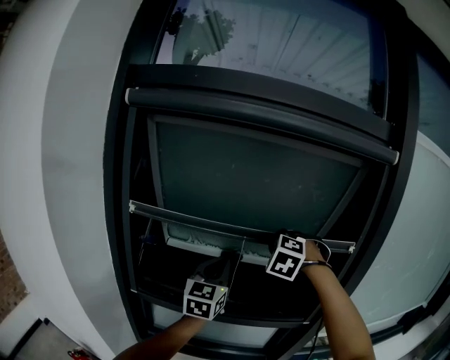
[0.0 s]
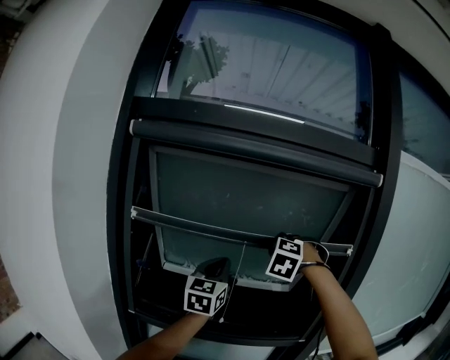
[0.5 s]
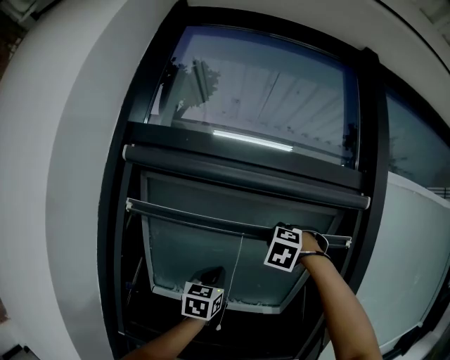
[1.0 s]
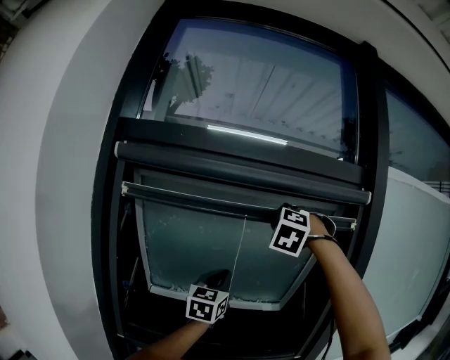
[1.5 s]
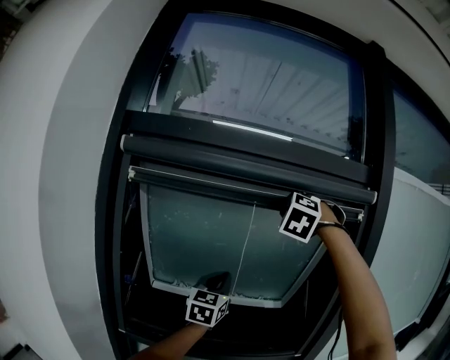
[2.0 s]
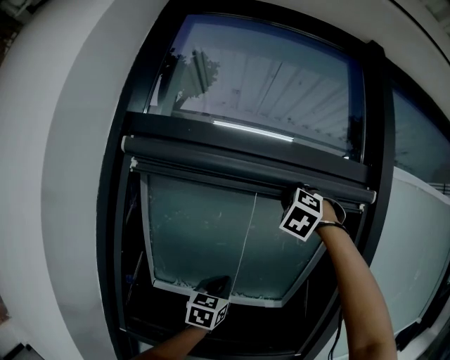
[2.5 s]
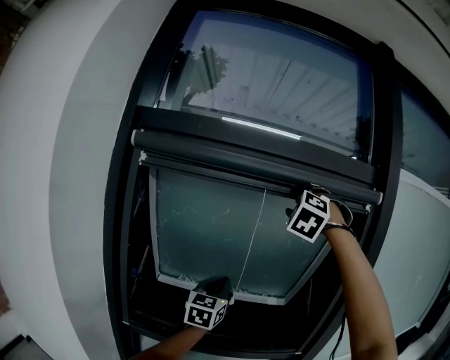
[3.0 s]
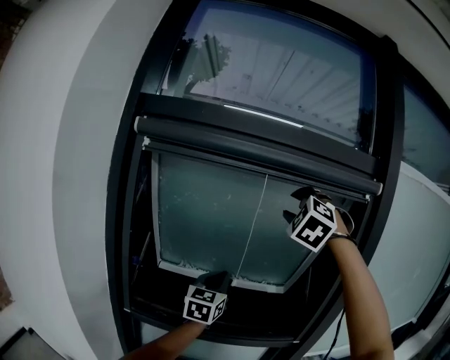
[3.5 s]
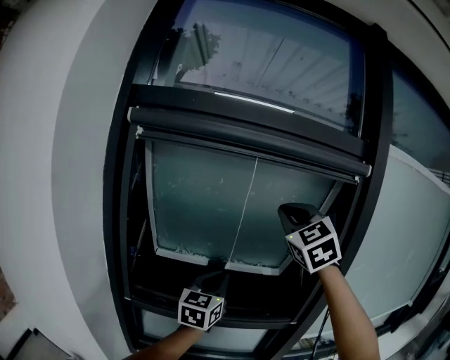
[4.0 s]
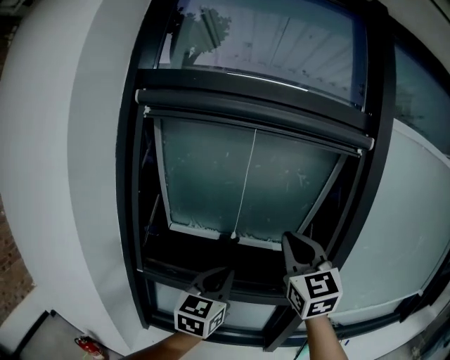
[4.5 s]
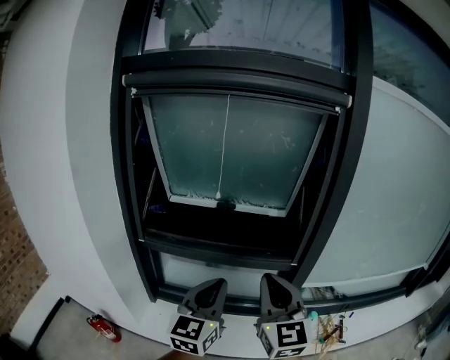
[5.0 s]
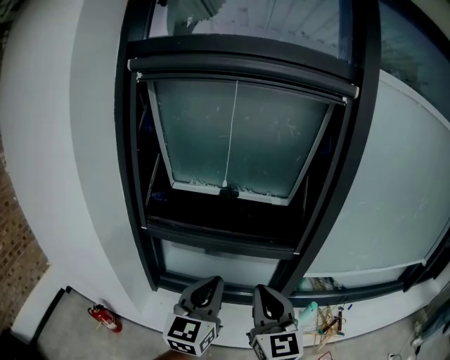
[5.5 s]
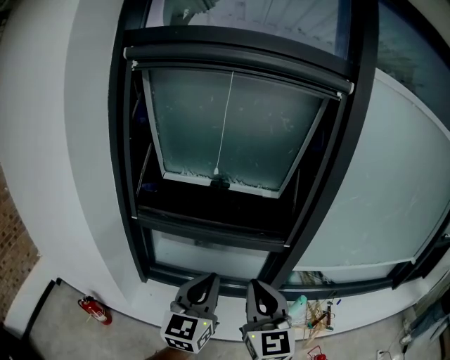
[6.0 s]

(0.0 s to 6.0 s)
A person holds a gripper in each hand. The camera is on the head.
0.0 s - 2.0 s: The right gripper heads upward, covering about 25 cm, and rotates roughly 20 degrees. The left gripper is displaced upward by about 10 cm.
2.0 s - 4.0 s: Both grippers travel together backward and downward, roughly 15 cm. The right gripper changes its angle by roughly 50 degrees, and opens, then closes once more.
4.0 s - 6.0 s: The right gripper is displaced downward and backward by about 40 cm, and changes its angle by some 30 degrees. The left gripper heads backward, covering roughly 30 cm.

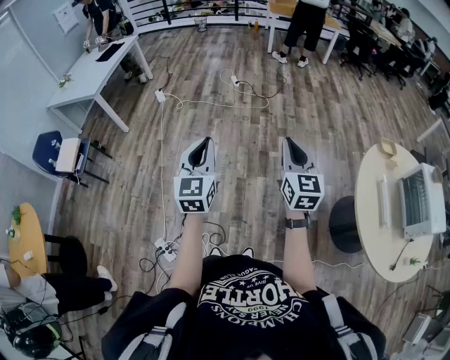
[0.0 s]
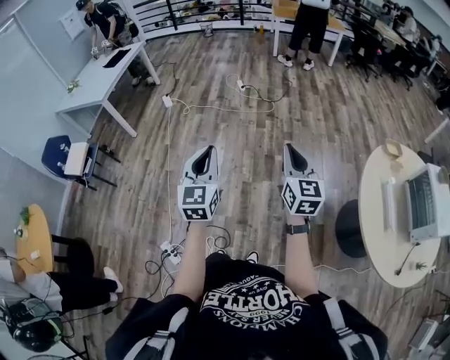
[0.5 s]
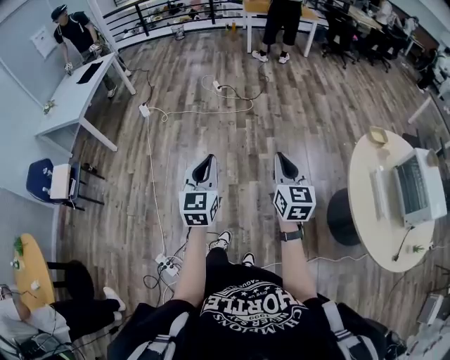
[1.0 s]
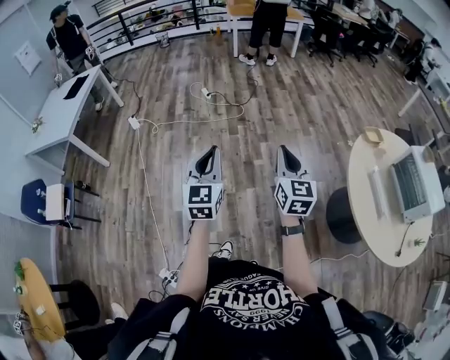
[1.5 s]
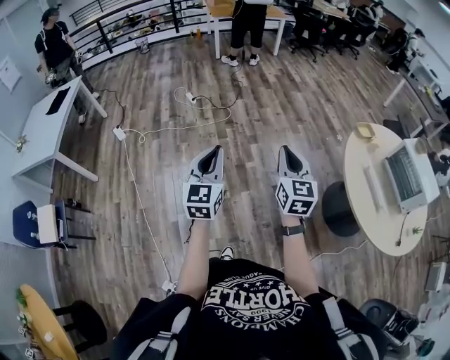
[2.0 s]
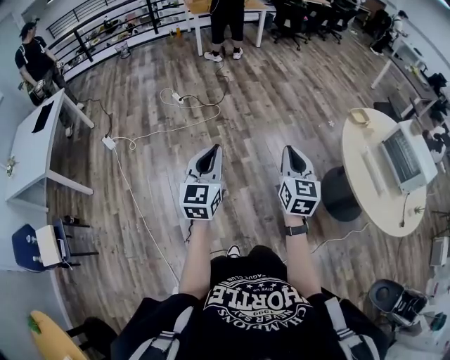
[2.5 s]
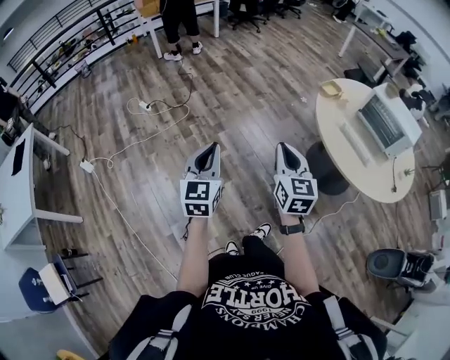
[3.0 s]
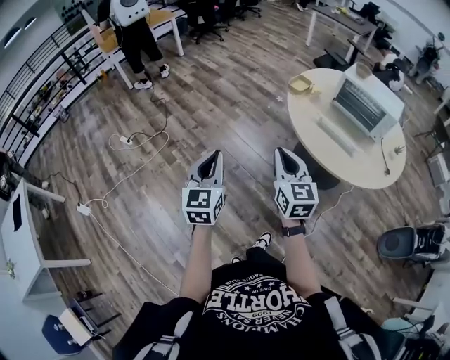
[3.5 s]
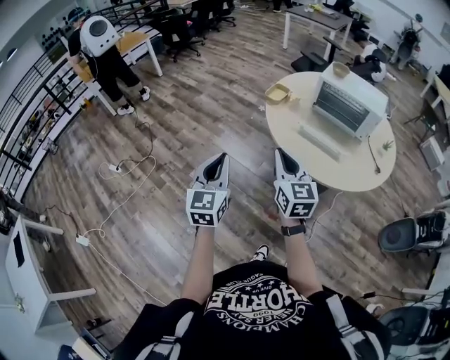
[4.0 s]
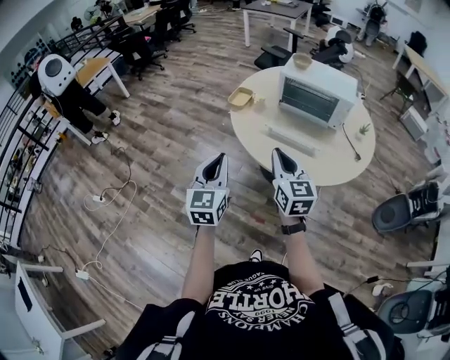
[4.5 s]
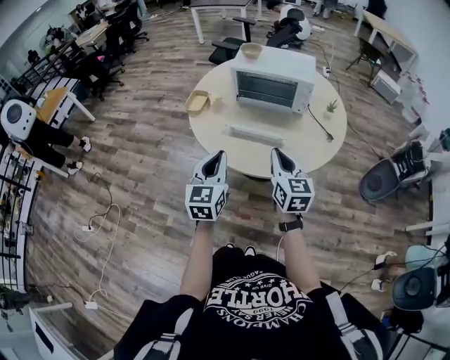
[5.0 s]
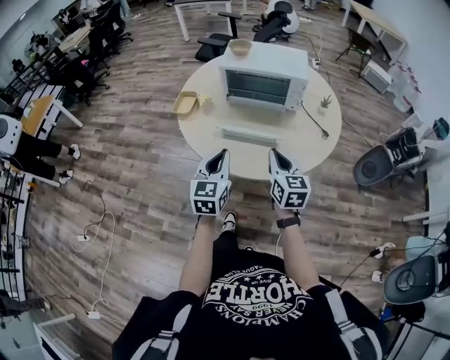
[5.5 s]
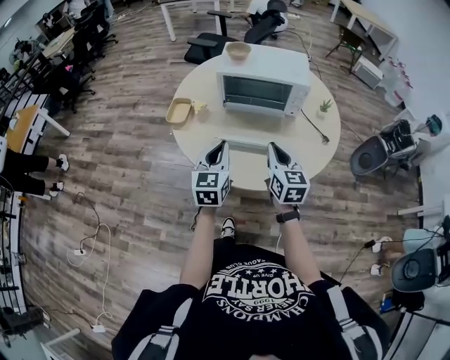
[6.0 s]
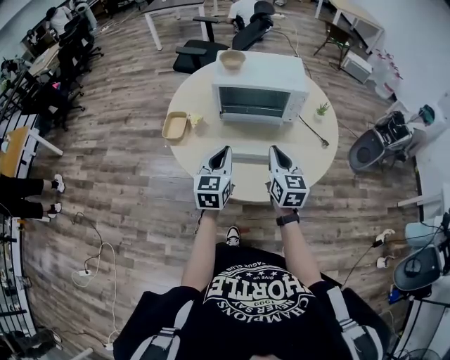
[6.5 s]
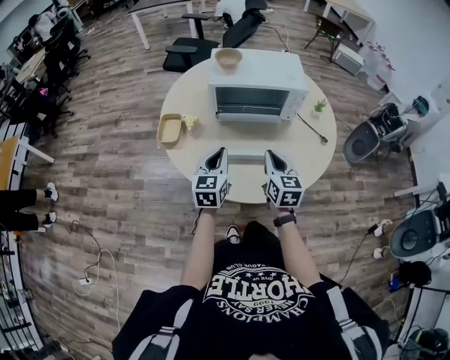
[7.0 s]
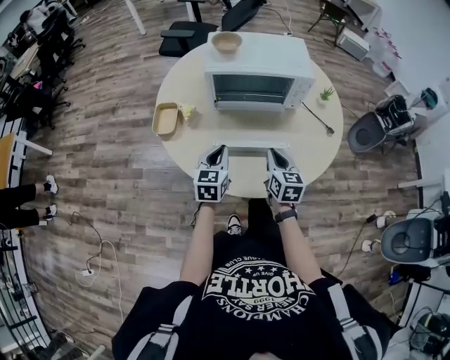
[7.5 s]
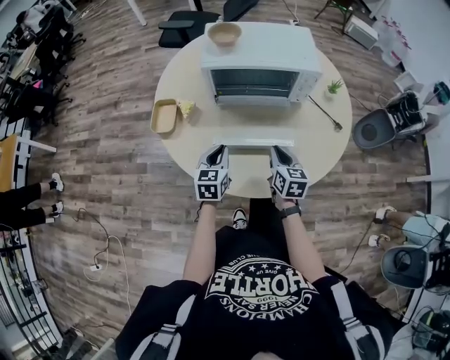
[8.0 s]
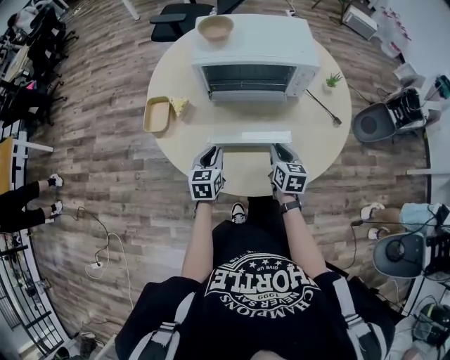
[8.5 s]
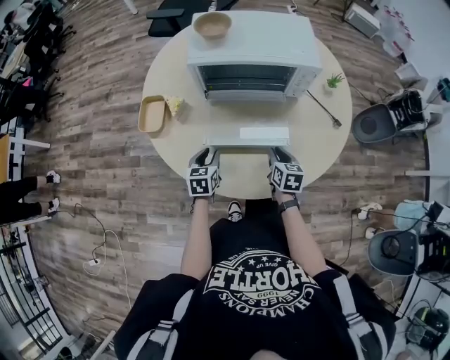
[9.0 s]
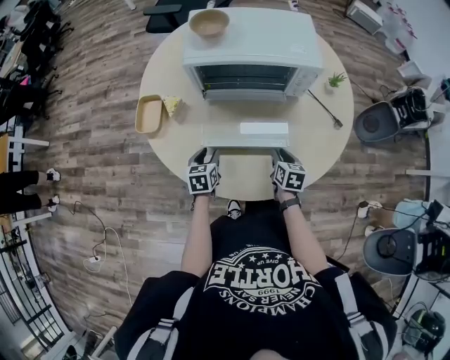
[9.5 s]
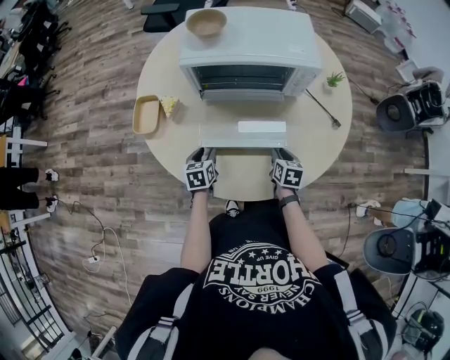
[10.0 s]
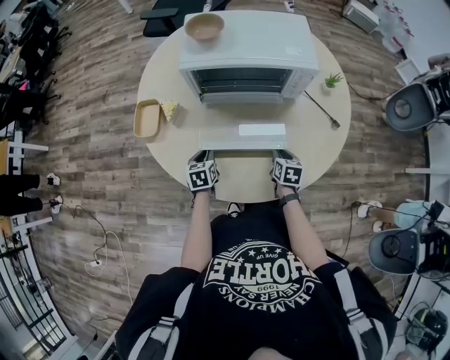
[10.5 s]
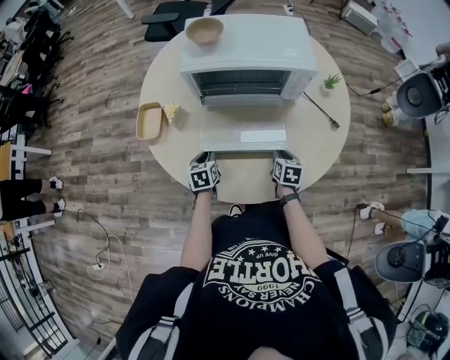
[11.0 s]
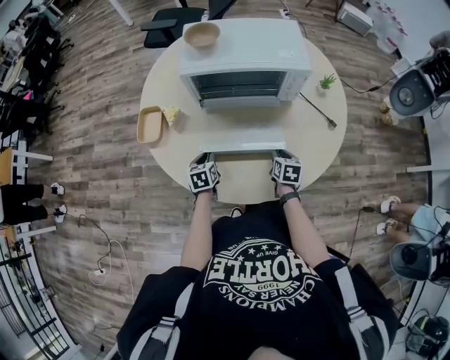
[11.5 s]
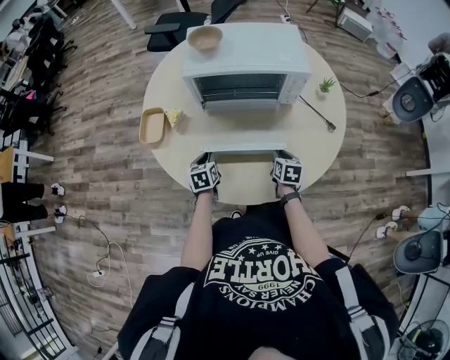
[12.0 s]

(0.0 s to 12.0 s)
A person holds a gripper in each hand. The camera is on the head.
0.0 s - 2.0 s: The left gripper goes about 15 cm forward, and changes its angle by about 20 degrees, while the right gripper heads forward, covering some 10 cm, and changes its angle by about 20 degrees.
2.0 s - 4.0 s: The left gripper changes place by about 40 cm, and swivels roughly 40 degrees, while the right gripper ends up roughly 30 cm from where it was, and changes its angle by some 30 degrees.
4.0 s - 6.0 s: The right gripper shifts by roughly 35 cm, and changes its angle by roughly 30 degrees. Meanwhile the left gripper ends up some 40 cm from where it was, and turns by roughly 30 degrees.
6.0 s - 8.0 s: The two grippers go approximately 20 cm downward and forward. The right gripper rotates some 20 degrees.
8.0 s - 10.0 s: The right gripper moves downward and to the right, about 15 cm; the left gripper goes about 15 cm downward, swivels roughly 20 degrees, and opens its fingers.
10.0 s - 12.0 s: The left gripper closes its fingers.

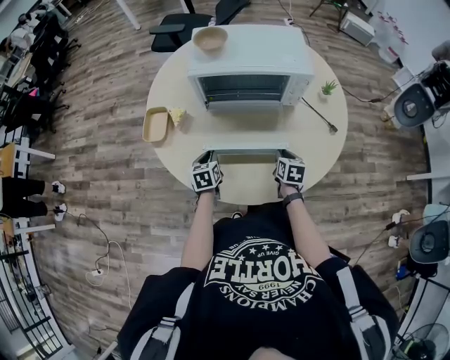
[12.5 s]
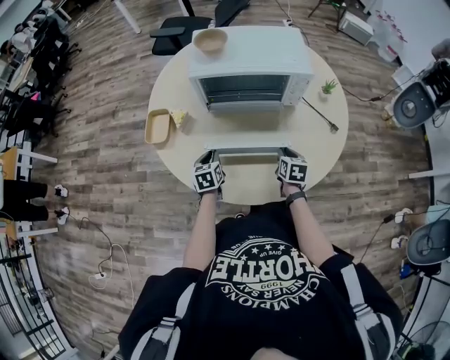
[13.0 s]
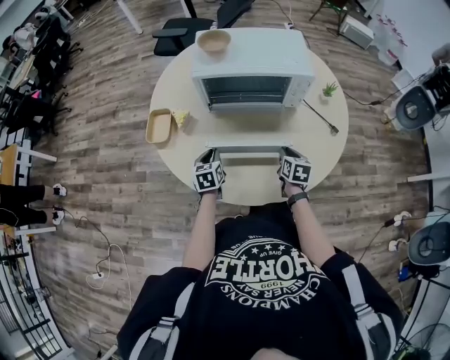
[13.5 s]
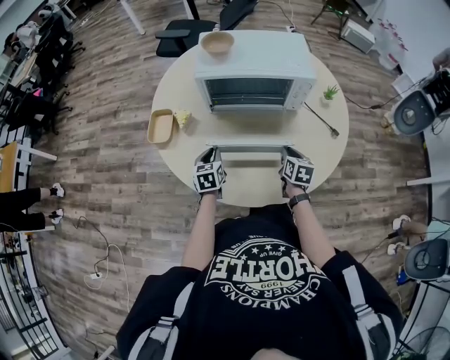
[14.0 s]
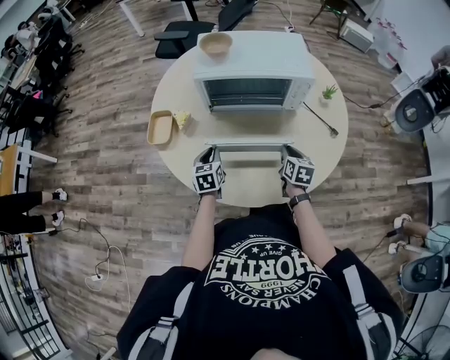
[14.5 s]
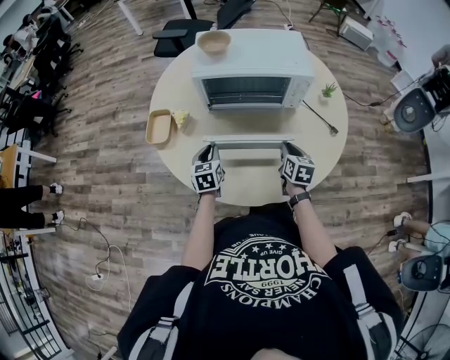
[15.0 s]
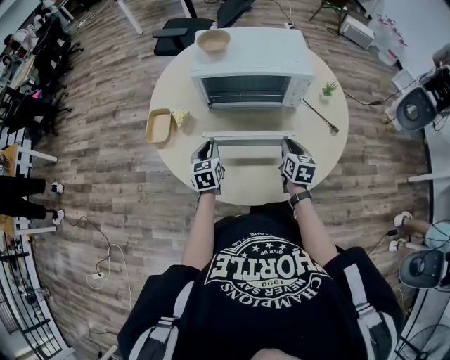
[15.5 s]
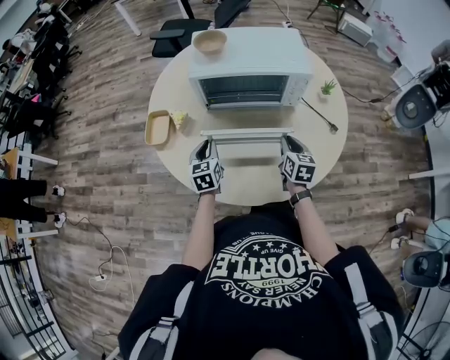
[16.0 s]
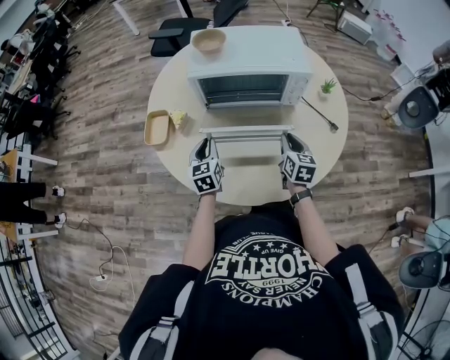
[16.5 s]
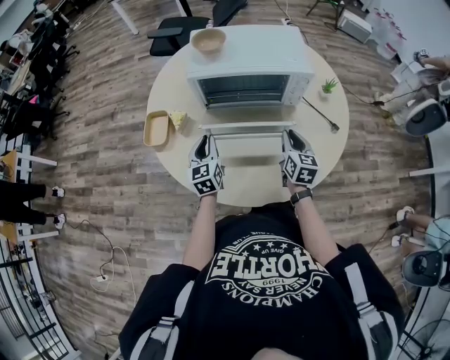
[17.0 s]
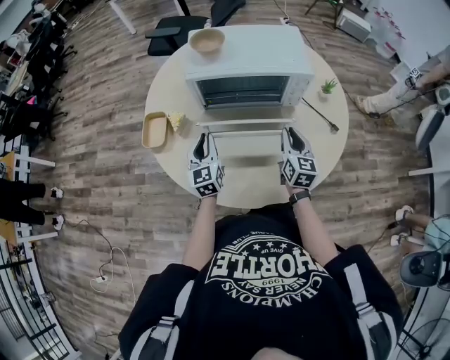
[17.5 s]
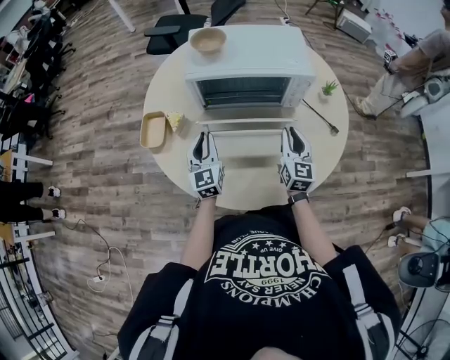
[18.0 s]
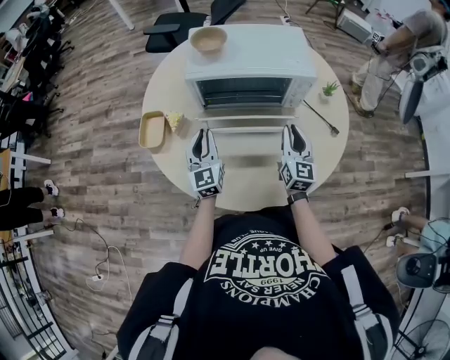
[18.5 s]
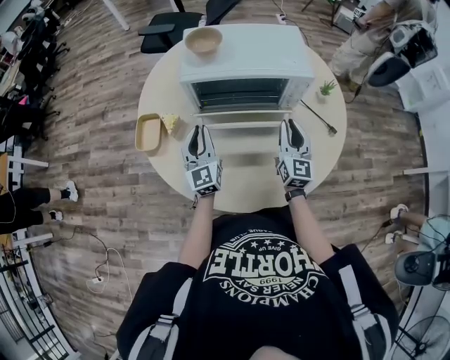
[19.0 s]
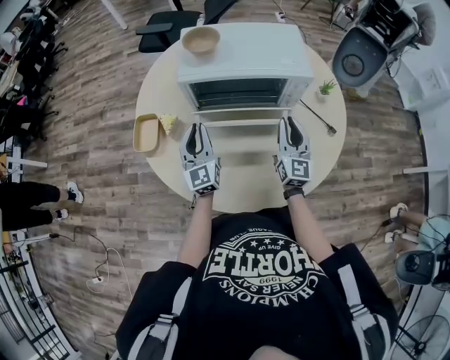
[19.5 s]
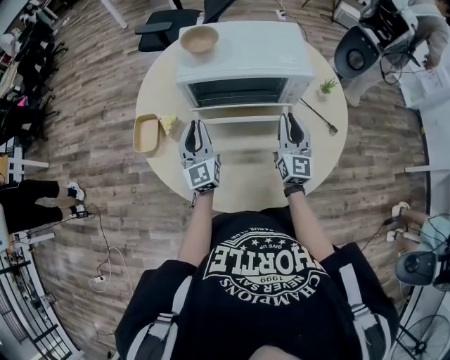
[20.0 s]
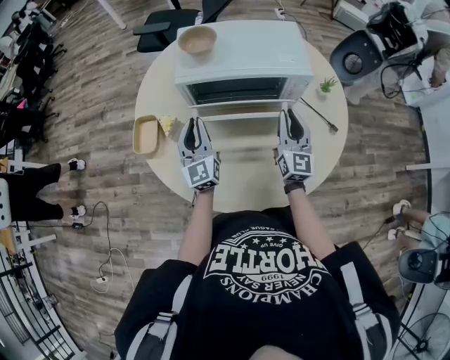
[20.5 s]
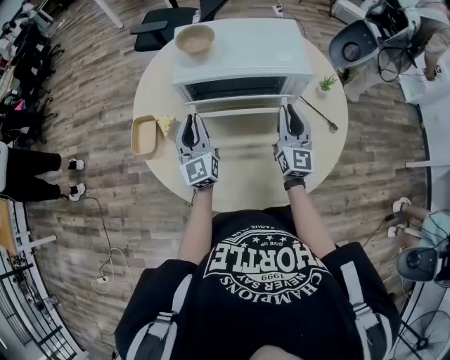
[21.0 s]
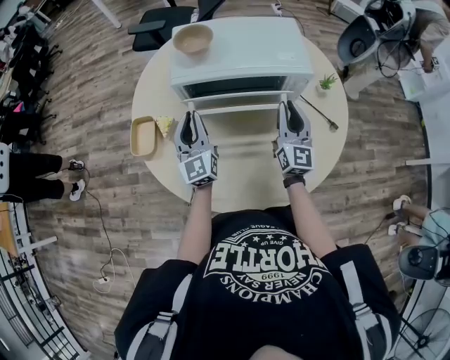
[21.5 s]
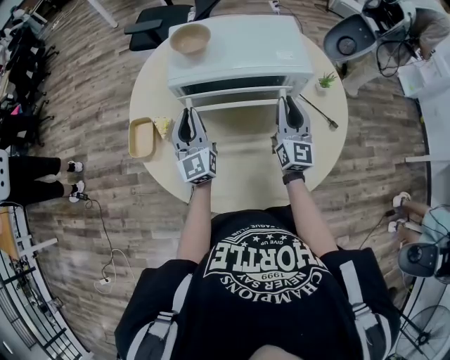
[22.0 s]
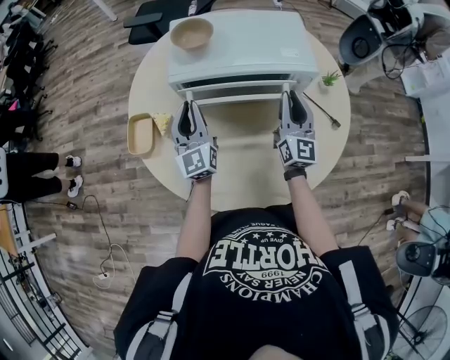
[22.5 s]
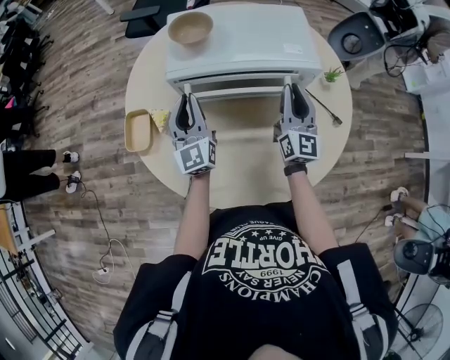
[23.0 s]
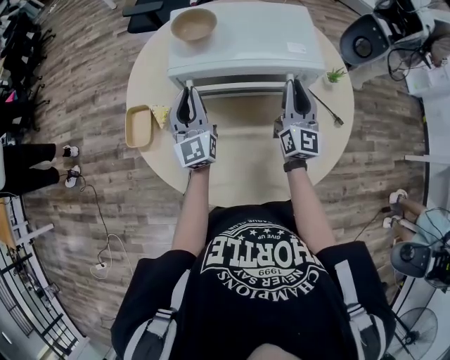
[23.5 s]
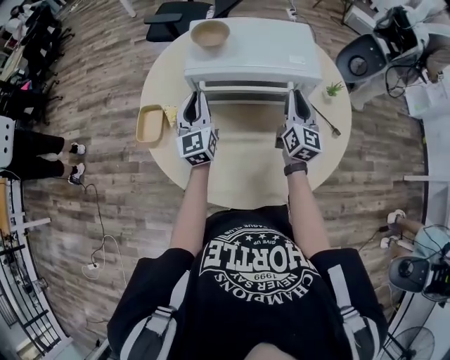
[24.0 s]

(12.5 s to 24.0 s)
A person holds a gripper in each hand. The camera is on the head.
12.5 s - 14.5 s: The right gripper changes place by approximately 5 cm.
14.5 s - 16.5 s: The right gripper shifts by some 5 cm.
16.5 s - 18.5 s: The grippers both shift upward by approximately 5 cm. The left gripper changes its angle by roughly 20 degrees, while the right gripper rotates some 20 degrees.
18.5 s - 20.0 s: There are only small adjustments of the grippers.
20.0 s - 22.0 s: The grippers stay close to where they were, moving slightly.
22.0 s - 24.0 s: The grippers move only a little.
